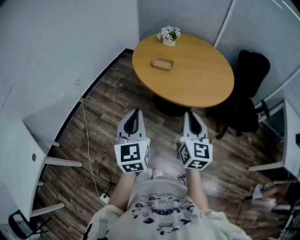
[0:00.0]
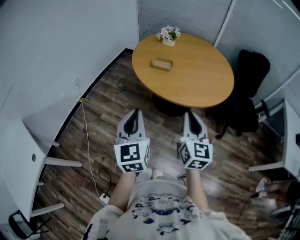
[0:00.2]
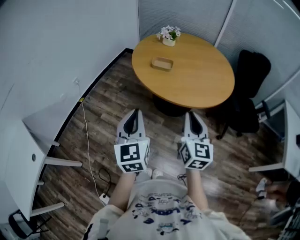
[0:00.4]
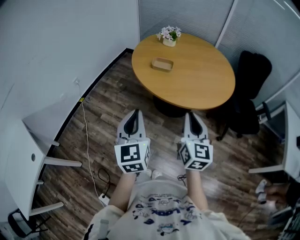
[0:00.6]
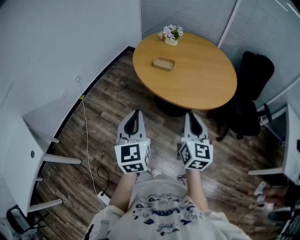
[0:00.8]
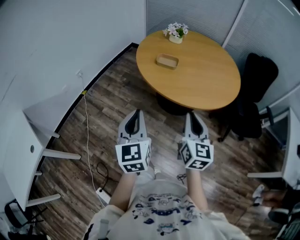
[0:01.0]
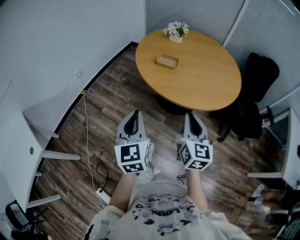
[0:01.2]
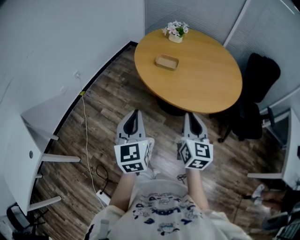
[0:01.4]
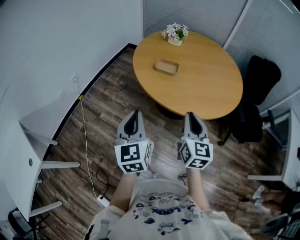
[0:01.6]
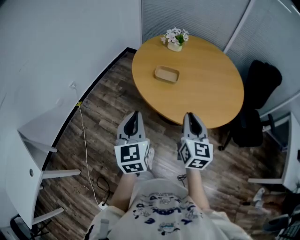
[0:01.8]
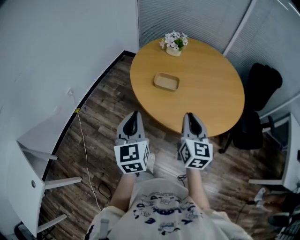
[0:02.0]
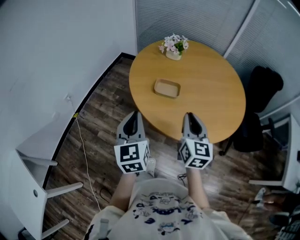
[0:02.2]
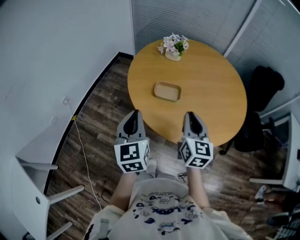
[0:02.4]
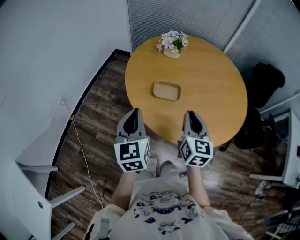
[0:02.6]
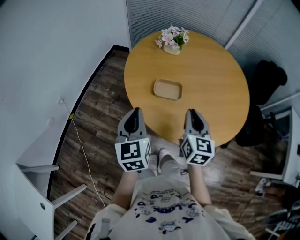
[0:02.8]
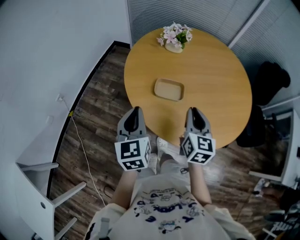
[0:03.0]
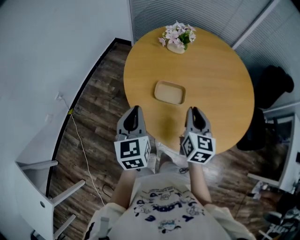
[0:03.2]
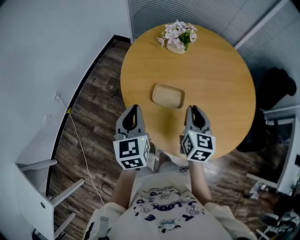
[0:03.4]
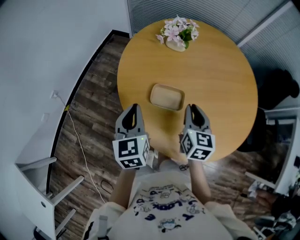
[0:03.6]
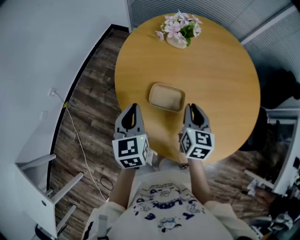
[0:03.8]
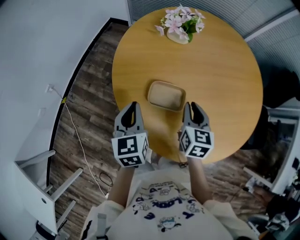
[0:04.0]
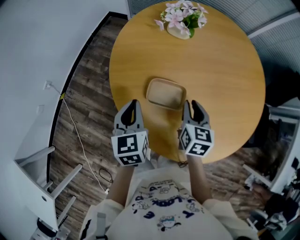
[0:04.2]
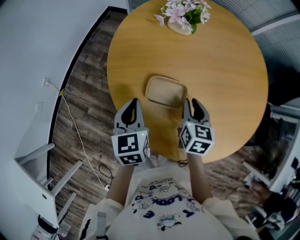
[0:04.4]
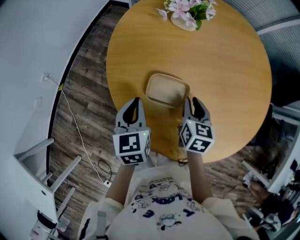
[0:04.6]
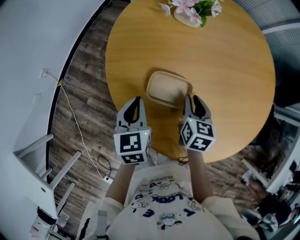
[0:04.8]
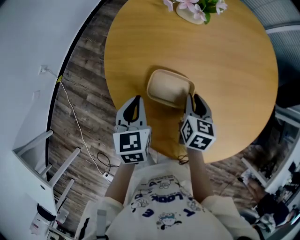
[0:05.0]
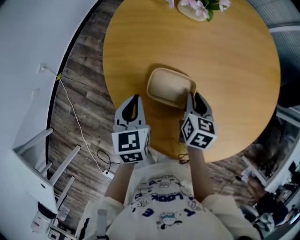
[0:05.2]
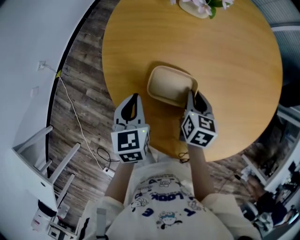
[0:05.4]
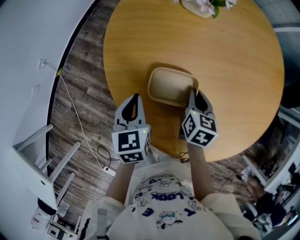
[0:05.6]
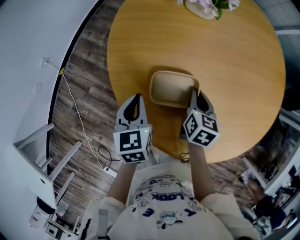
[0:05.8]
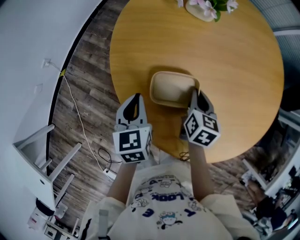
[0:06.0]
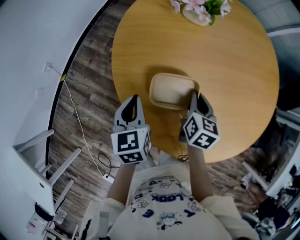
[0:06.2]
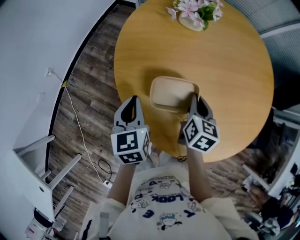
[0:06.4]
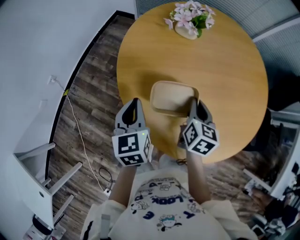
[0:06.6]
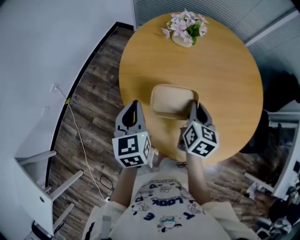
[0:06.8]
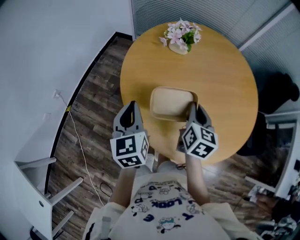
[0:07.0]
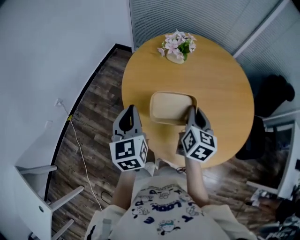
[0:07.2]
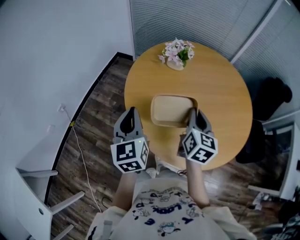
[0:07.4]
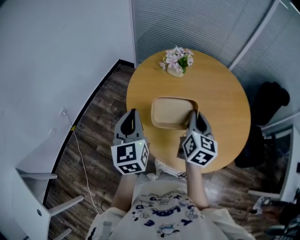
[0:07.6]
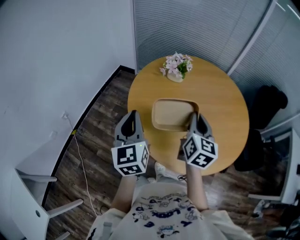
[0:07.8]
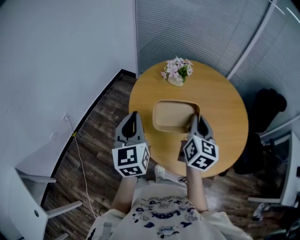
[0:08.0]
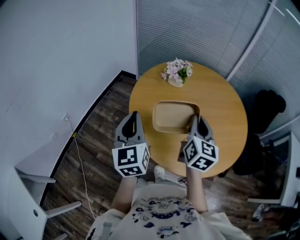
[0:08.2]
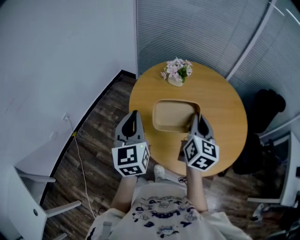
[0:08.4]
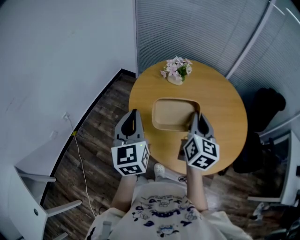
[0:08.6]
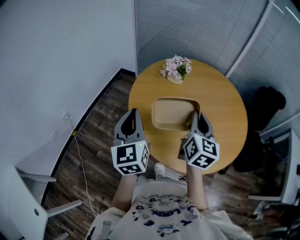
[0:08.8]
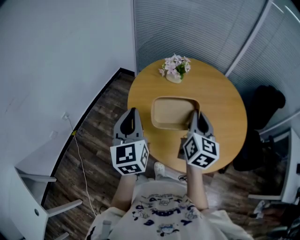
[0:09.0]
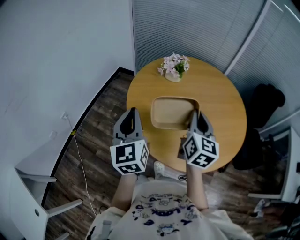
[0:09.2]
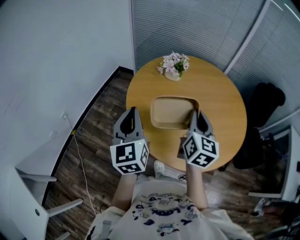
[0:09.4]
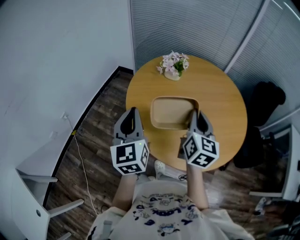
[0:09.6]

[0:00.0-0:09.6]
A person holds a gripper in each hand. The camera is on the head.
0:00.0 to 0:01.6: Both grippers travel together forward and downward, approximately 10 cm.
0:01.6 to 0:03.2: Both grippers move forward, about 30 cm.
0:03.2 to 0:04.8: The two grippers go some 20 cm downward and forward. The right gripper rotates approximately 20 degrees.
0:04.8 to 0:06.4: The grippers stay close to where they were, moving slightly.
0:06.4 to 0:08.0: Both grippers move upward, roughly 25 cm. The right gripper rotates some 30 degrees; the left gripper angles its fingers upward, by roughly 30 degrees.
0:08.0 to 0:09.6: The grippers move only a little.

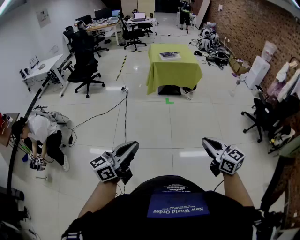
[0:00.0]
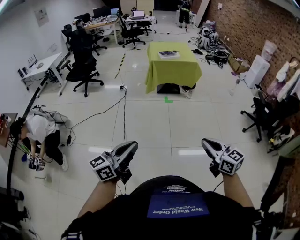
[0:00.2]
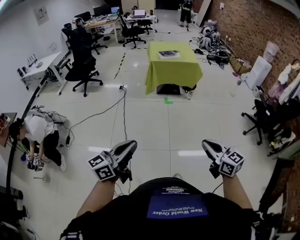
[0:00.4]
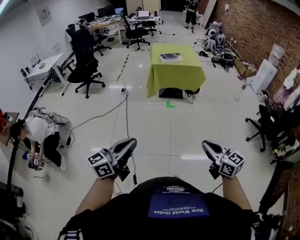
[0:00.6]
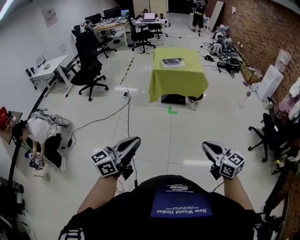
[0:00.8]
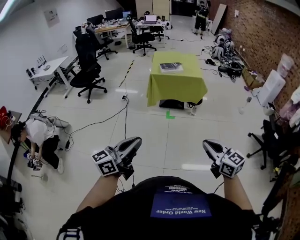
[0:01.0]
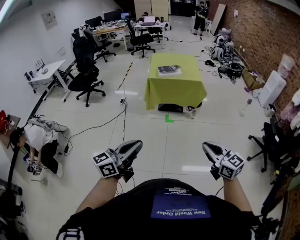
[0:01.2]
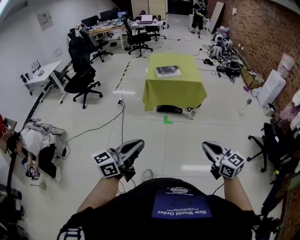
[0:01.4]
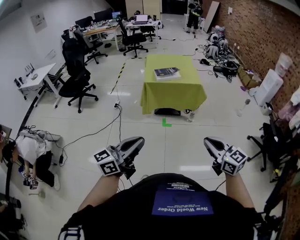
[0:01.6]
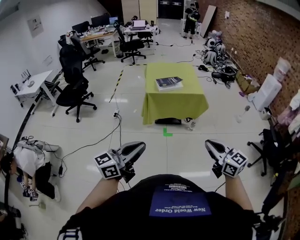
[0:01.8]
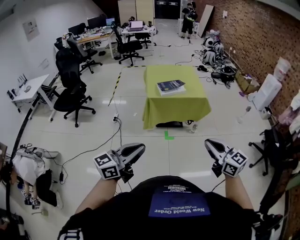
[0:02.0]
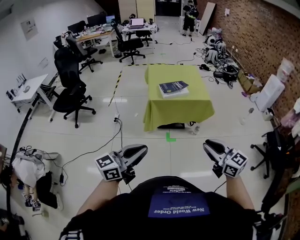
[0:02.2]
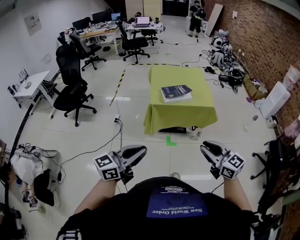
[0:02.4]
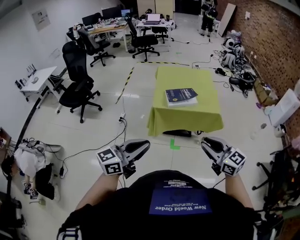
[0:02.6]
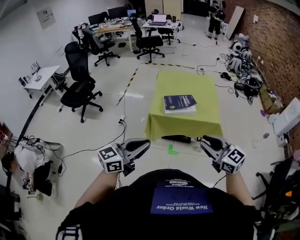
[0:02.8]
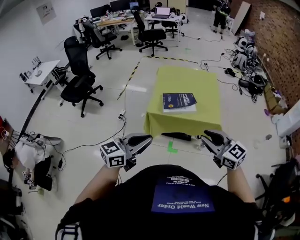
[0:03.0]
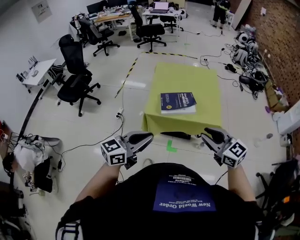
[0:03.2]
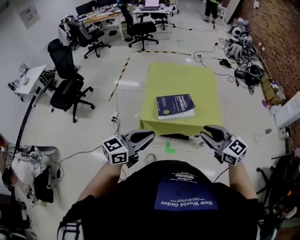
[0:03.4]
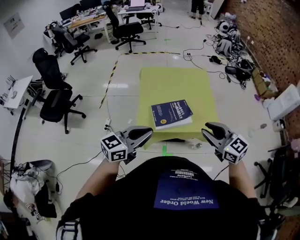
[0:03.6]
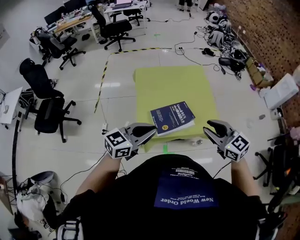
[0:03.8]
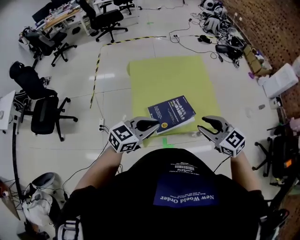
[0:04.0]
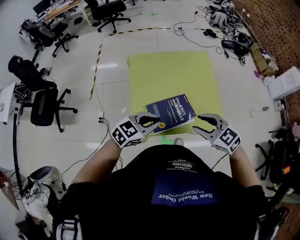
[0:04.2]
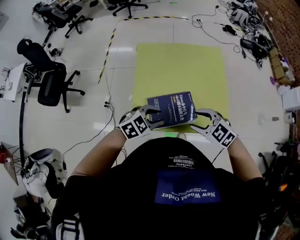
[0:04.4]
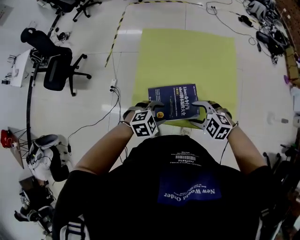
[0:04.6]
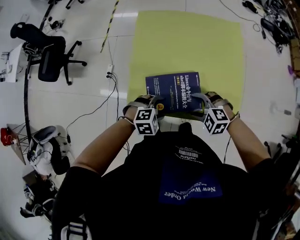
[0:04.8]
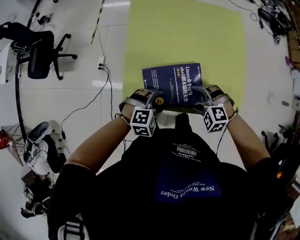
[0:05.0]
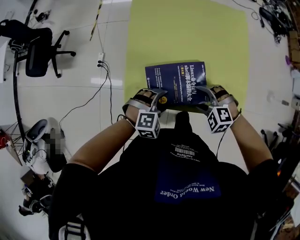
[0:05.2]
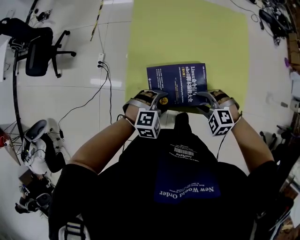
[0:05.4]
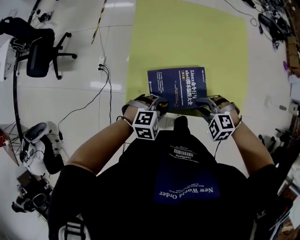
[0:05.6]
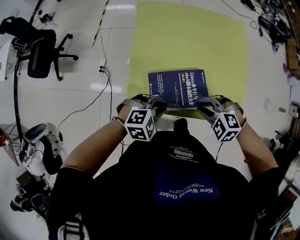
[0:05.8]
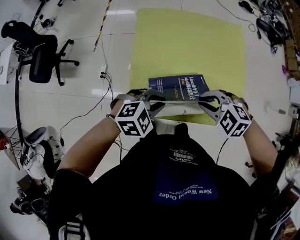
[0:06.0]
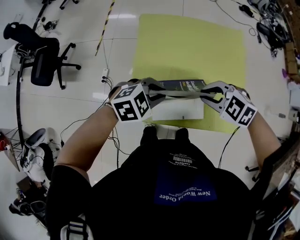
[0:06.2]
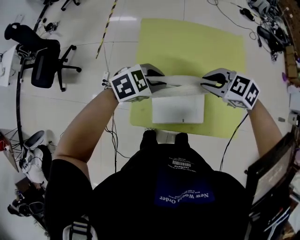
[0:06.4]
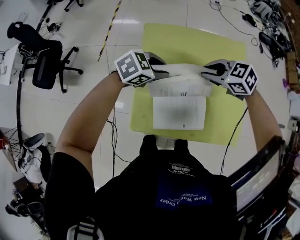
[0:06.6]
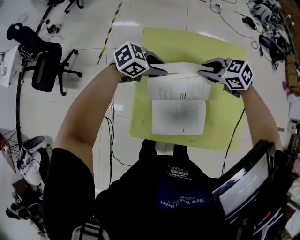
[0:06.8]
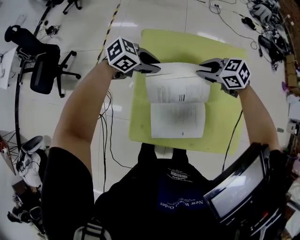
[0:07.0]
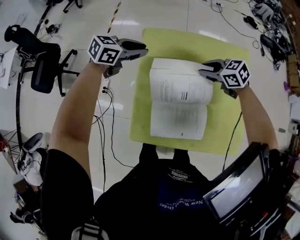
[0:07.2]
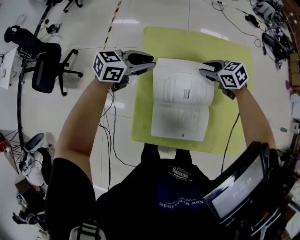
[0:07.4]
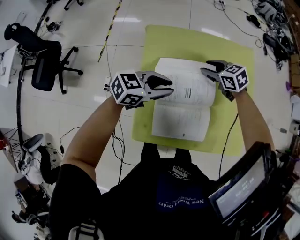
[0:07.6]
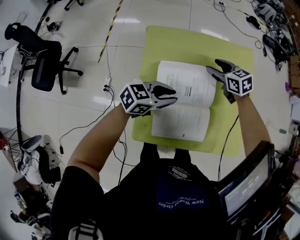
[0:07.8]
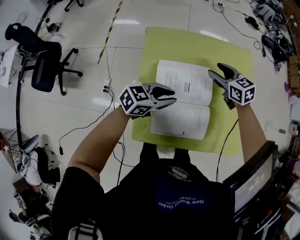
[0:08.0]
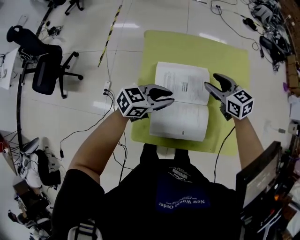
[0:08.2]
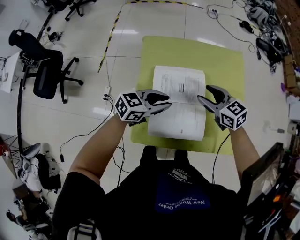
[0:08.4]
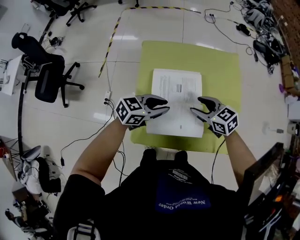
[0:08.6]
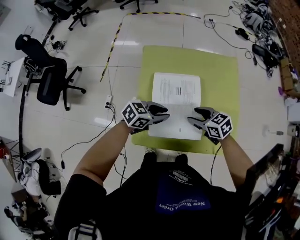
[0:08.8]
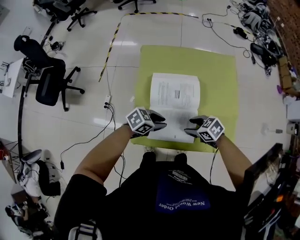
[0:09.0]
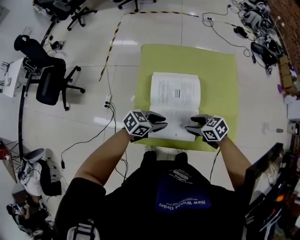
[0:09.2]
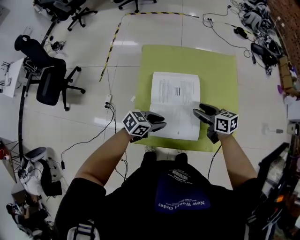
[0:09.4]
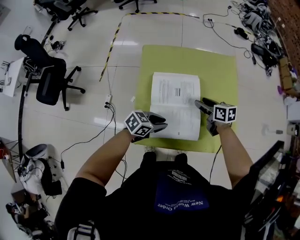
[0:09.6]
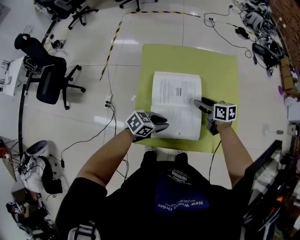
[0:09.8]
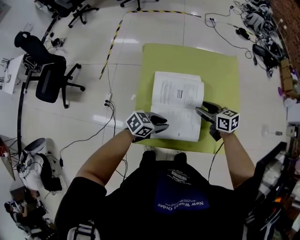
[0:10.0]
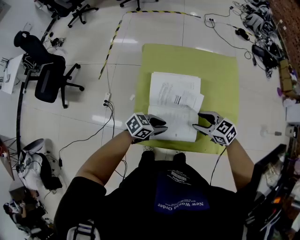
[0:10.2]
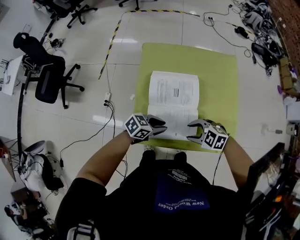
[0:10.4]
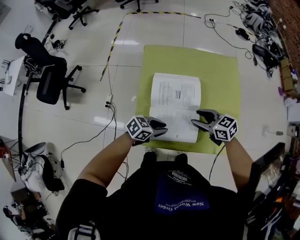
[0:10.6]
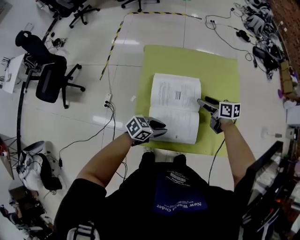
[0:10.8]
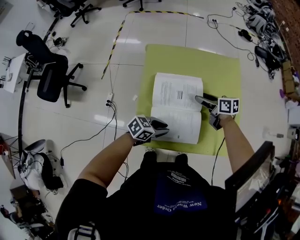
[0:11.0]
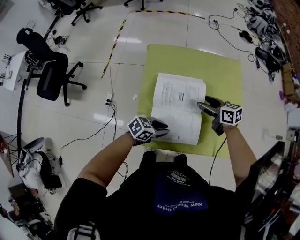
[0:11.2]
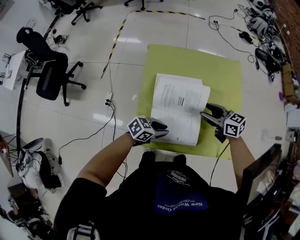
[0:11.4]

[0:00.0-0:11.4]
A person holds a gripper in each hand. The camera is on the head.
0:00.0 to 0:01.4: The grippers both shift forward and to the right by roughly 40 cm.
0:01.4 to 0:02.8: The pair of grippers is taken forward, roughly 50 cm.
0:02.8 to 0:04.2: Both grippers travel together forward, roughly 40 cm. The right gripper rotates about 30 degrees. Meanwhile the left gripper turns by some 40 degrees.
0:04.2 to 0:05.6: The grippers both shift downward by about 20 cm. The left gripper points its fingers roughly 30 degrees further downward, and opens its fingers. Meanwhile the right gripper changes its angle by roughly 50 degrees, and opens and closes again.
0:05.6 to 0:07.2: The right gripper shifts by about 35 cm, and rolls clockwise, seen from behind, by about 40 degrees; the left gripper changes place by approximately 40 cm, and turns by some 50 degrees.
0:07.2 to 0:08.6: The left gripper moves about 25 cm, while the right gripper ends up roughly 15 cm from where it was, and opens up.
0:08.6 to 0:10.0: The right gripper swivels some 20 degrees, while the left gripper travels downward by roughly 10 cm.

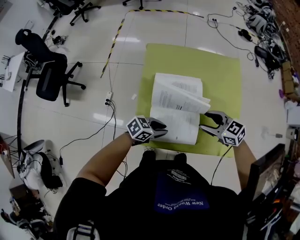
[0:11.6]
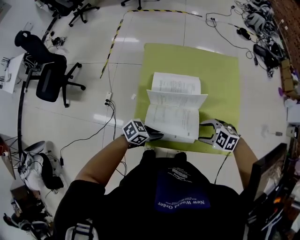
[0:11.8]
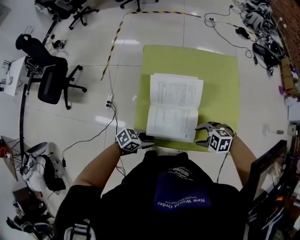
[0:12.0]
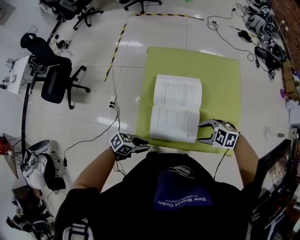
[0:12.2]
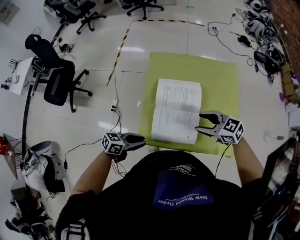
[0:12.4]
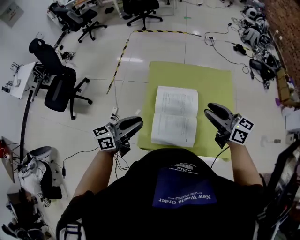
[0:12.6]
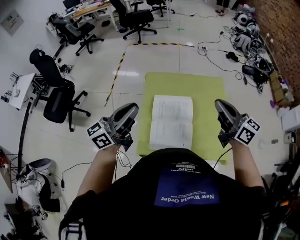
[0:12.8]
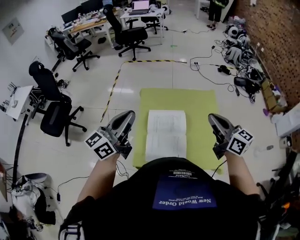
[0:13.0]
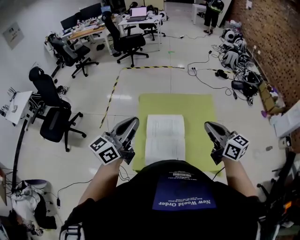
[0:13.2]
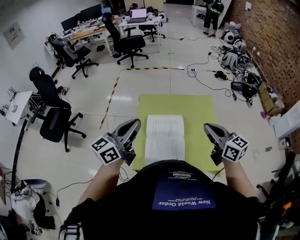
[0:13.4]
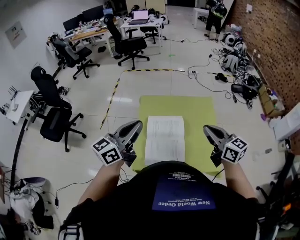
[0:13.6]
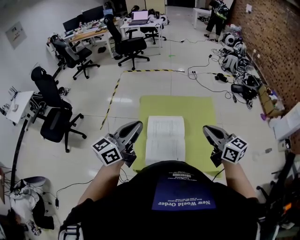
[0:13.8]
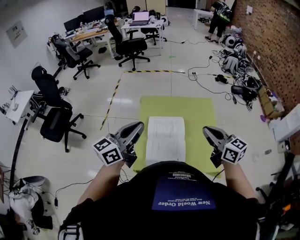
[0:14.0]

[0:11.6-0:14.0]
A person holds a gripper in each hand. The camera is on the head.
0:11.6 to 0:12.8: The grippers both shift upward by approximately 30 cm. The right gripper angles its fingers upward, by about 30 degrees, and closes up. Meanwhile the left gripper angles its fingers upward, by approximately 50 degrees.
0:12.8 to 0:14.0: The right gripper moves backward, roughly 5 cm.
